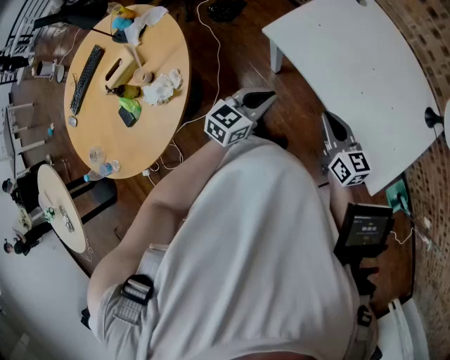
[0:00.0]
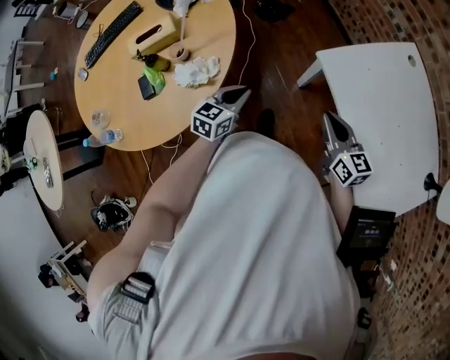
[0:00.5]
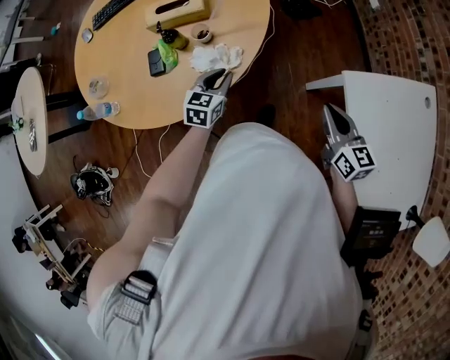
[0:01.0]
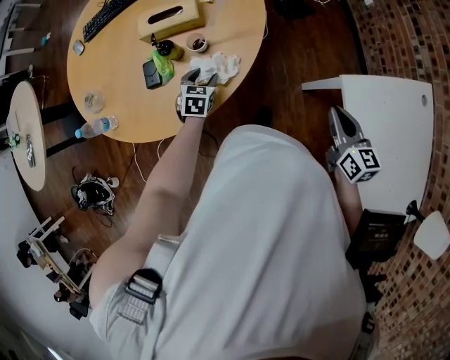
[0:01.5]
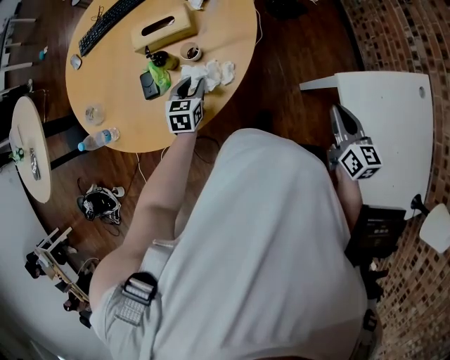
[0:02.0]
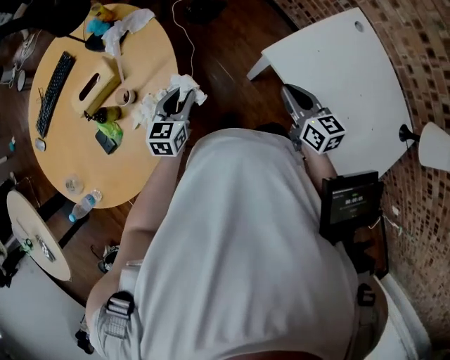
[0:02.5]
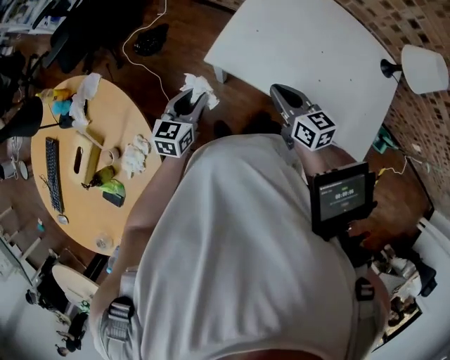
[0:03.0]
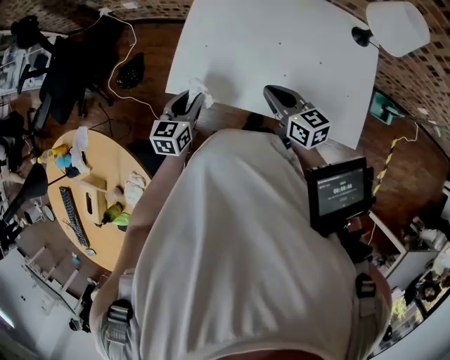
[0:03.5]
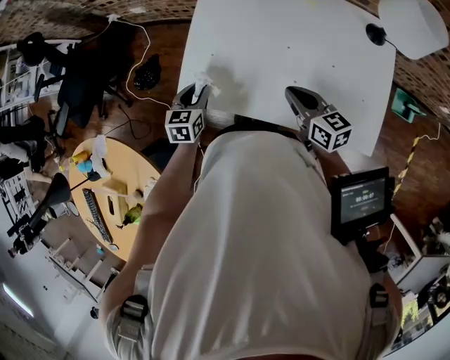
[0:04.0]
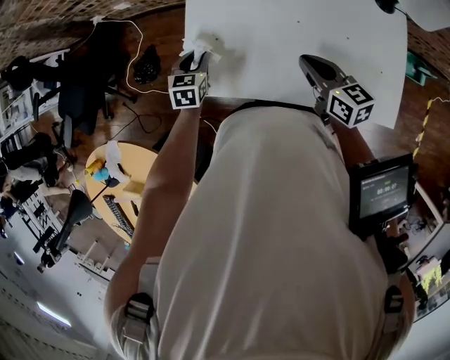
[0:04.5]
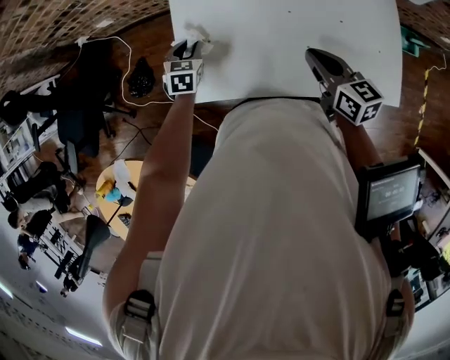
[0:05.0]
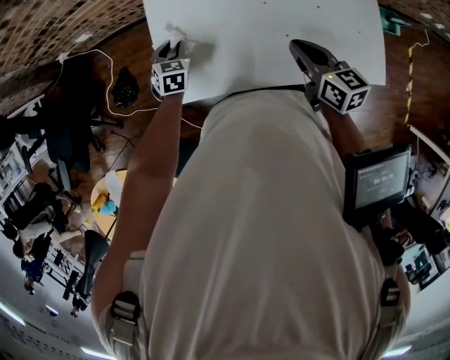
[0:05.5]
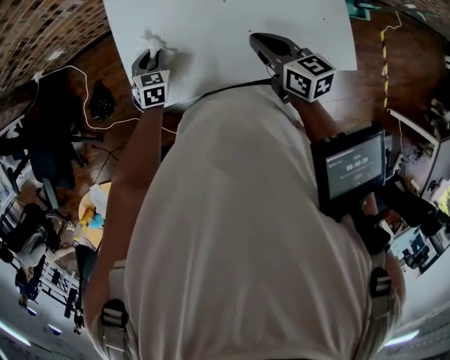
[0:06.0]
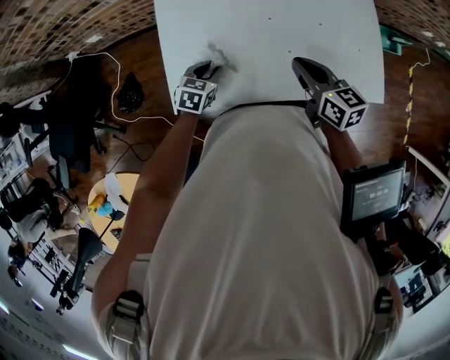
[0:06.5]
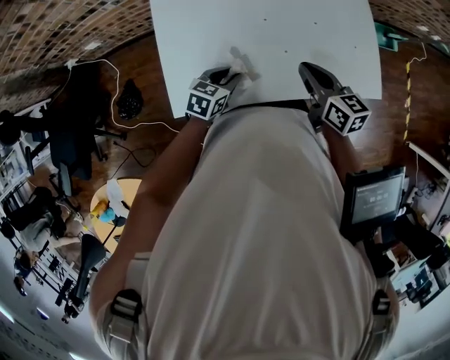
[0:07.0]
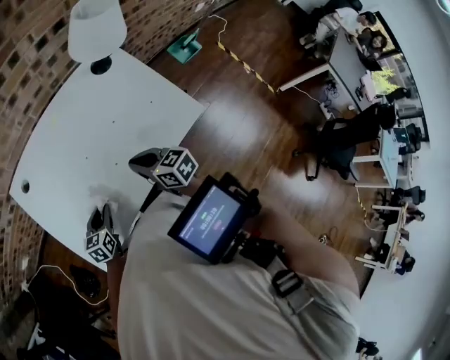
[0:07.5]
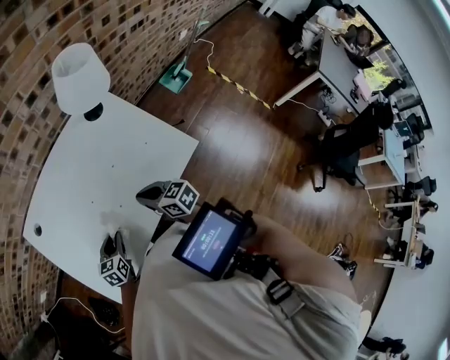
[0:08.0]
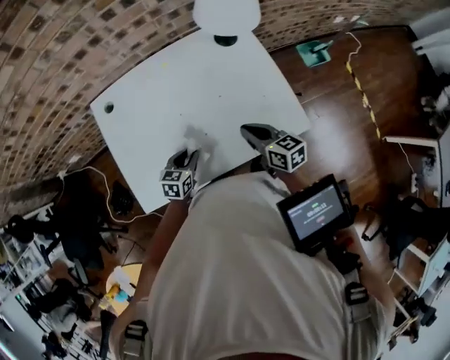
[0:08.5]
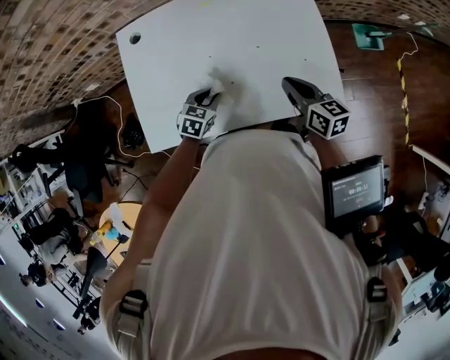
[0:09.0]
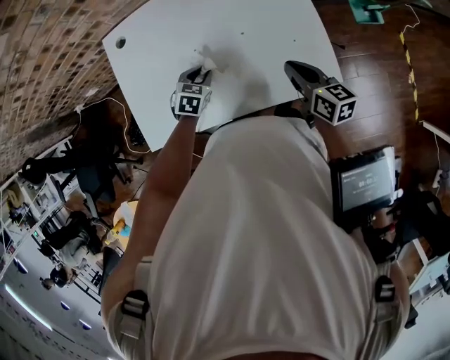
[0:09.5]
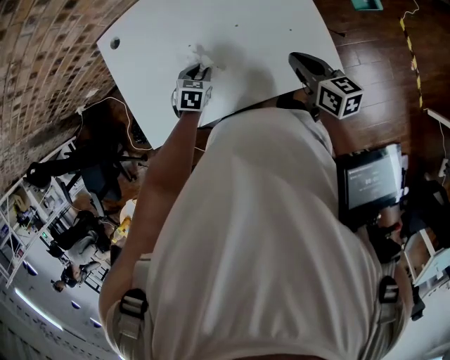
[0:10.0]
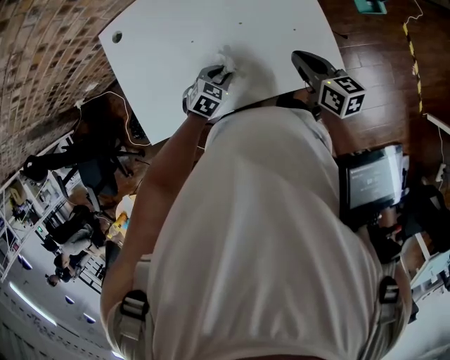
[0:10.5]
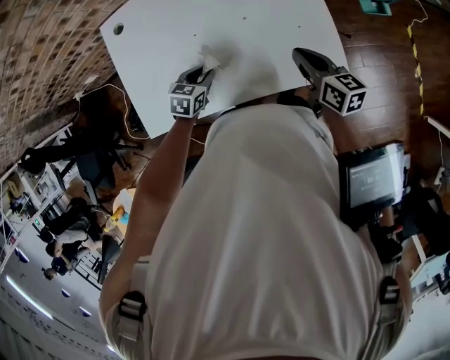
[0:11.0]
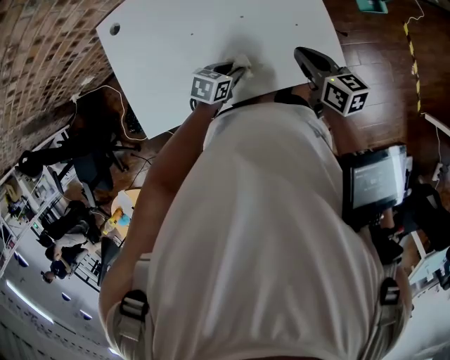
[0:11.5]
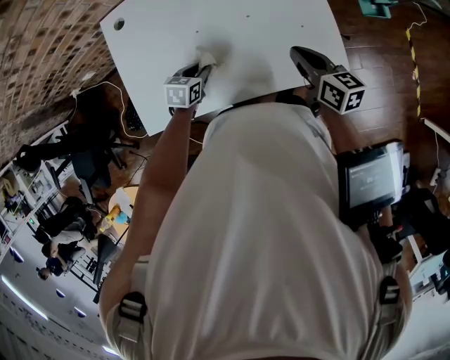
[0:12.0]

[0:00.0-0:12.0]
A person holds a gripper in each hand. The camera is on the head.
0:00.0 to 0:02.0: The left gripper moves roughly 50 cm, turns by roughly 60 degrees, and opens its fingers; the right gripper ends up roughly 25 cm from where it was.
0:02.0 to 0:04.0: The left gripper ends up some 60 cm from where it was, and turns by about 70 degrees. The right gripper moves some 35 cm, and rotates approximately 40 degrees.
0:04.0 to 0:06.0: The left gripper is displaced forward and downward by roughly 10 cm, and rotates about 30 degrees. The right gripper swivels about 20 degrees.
0:06.0 to 0:08.0: The left gripper shifts by approximately 15 cm, and changes its angle by roughly 40 degrees, while the right gripper shifts by some 10 cm.
0:08.0 to 0:10.0: The left gripper moves to the right and forward, about 10 cm, and rotates approximately 30 degrees, while the right gripper is displaced to the right by roughly 15 cm.
0:10.0 to 0:12.0: The left gripper moves left and right over roughly 10 cm, changing direction 3 times.

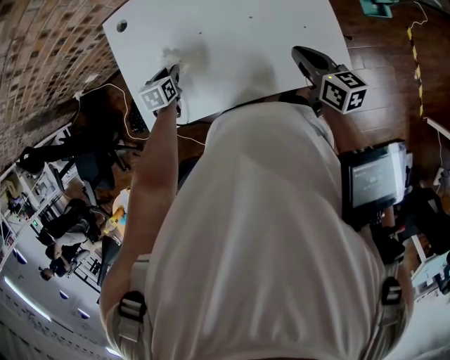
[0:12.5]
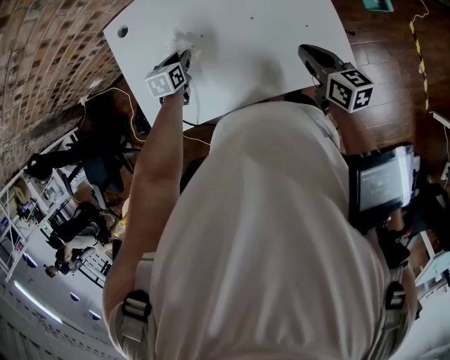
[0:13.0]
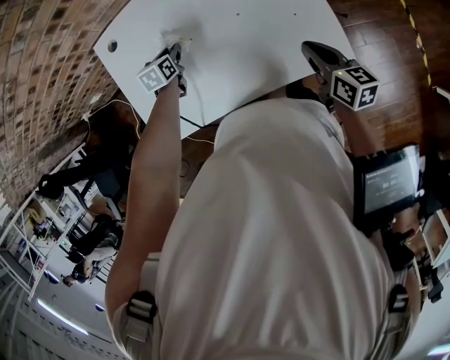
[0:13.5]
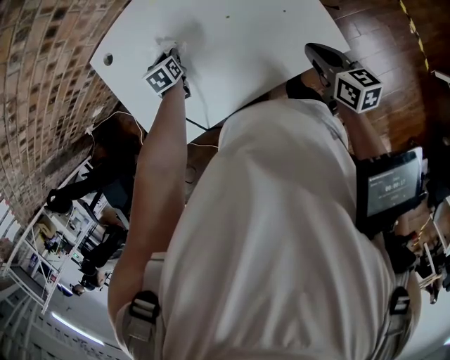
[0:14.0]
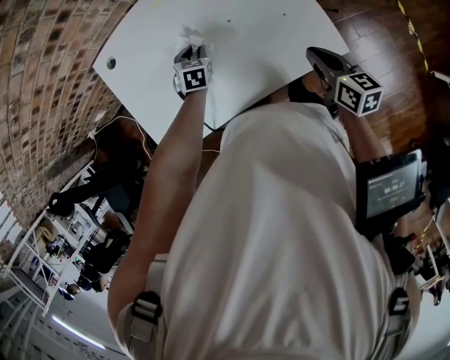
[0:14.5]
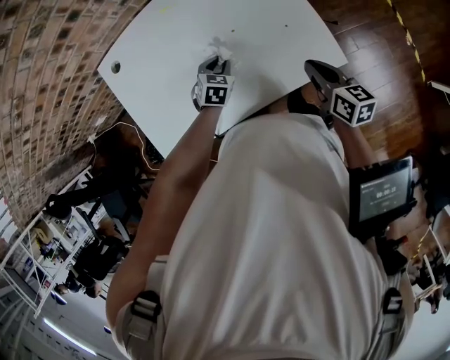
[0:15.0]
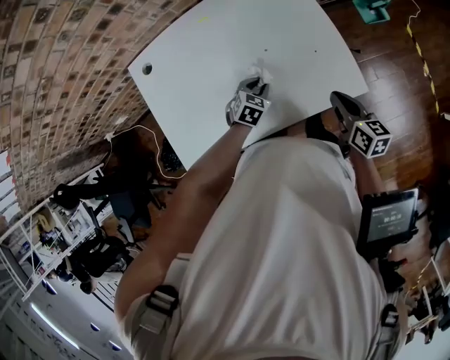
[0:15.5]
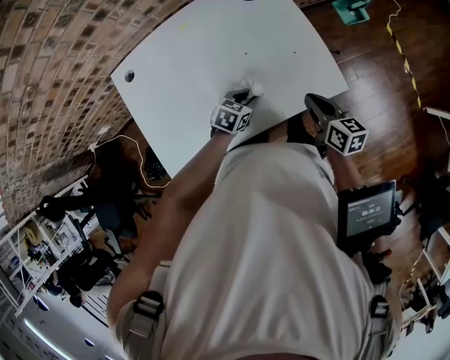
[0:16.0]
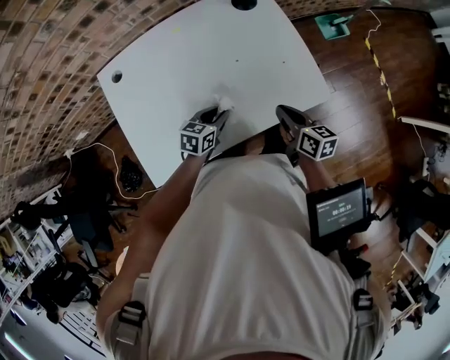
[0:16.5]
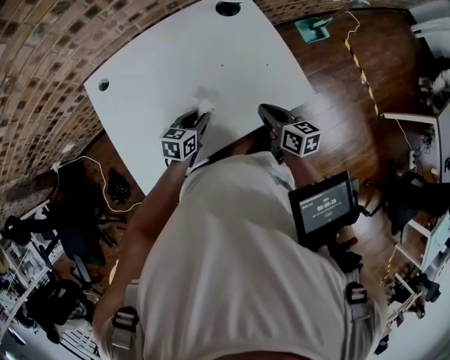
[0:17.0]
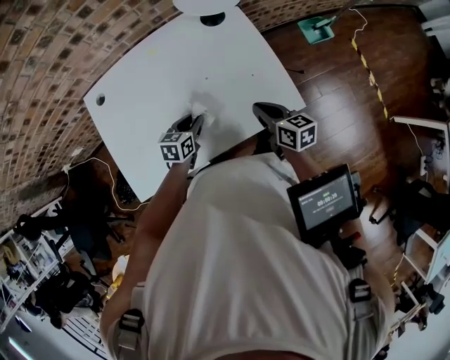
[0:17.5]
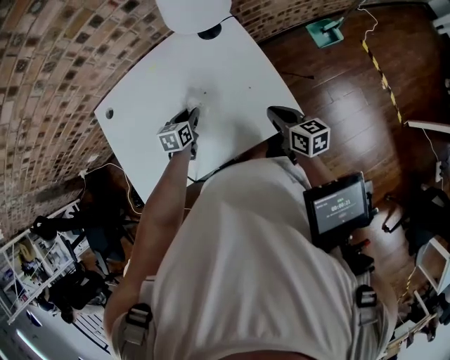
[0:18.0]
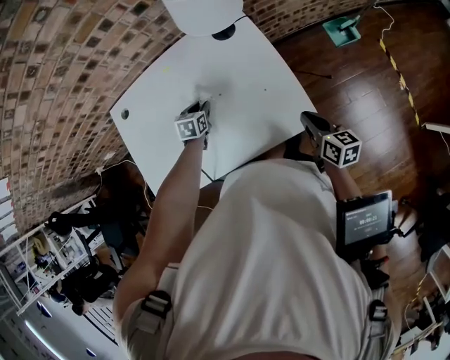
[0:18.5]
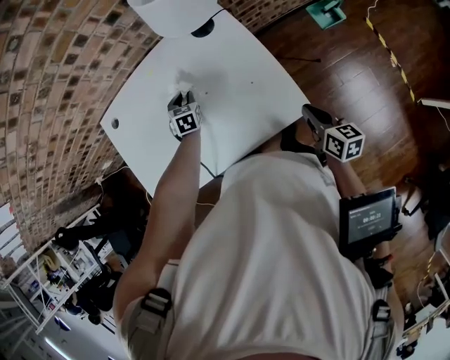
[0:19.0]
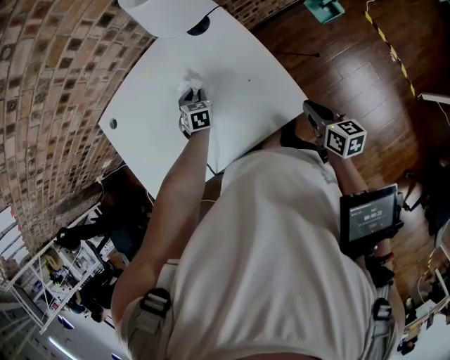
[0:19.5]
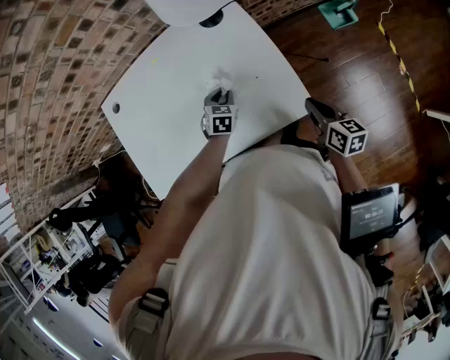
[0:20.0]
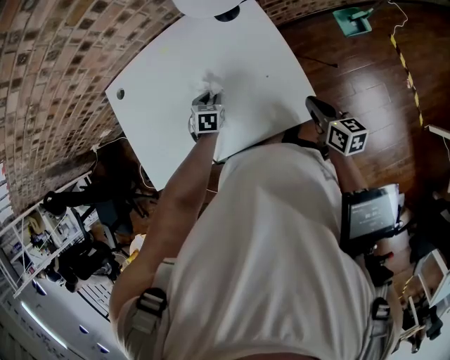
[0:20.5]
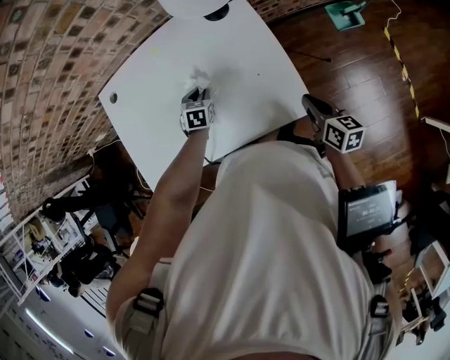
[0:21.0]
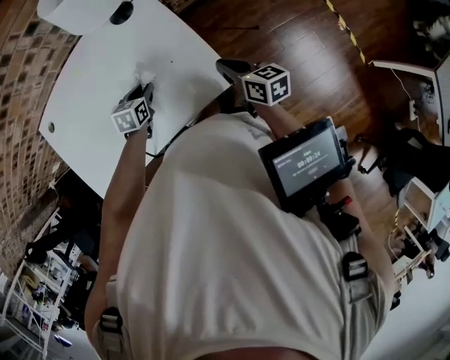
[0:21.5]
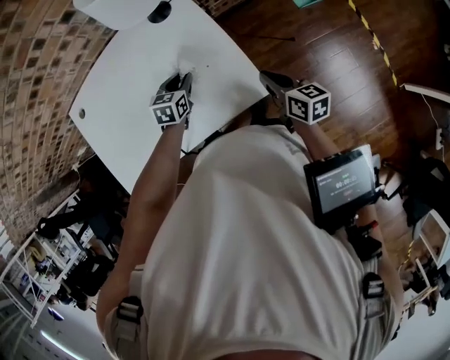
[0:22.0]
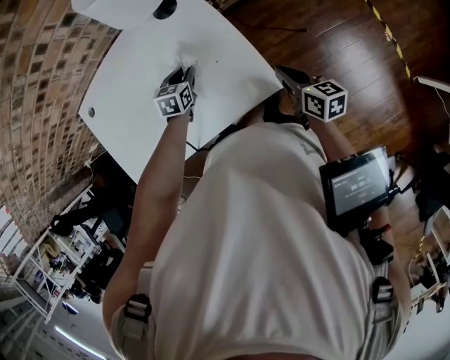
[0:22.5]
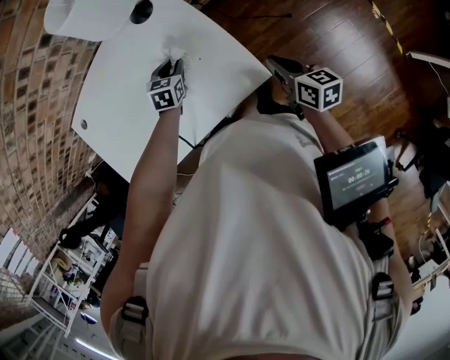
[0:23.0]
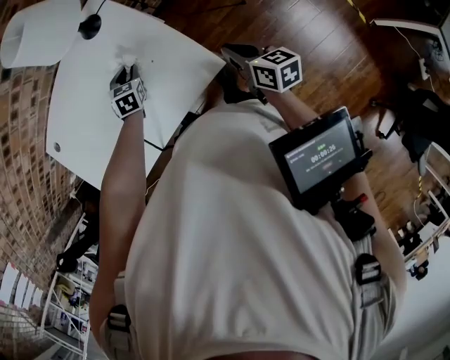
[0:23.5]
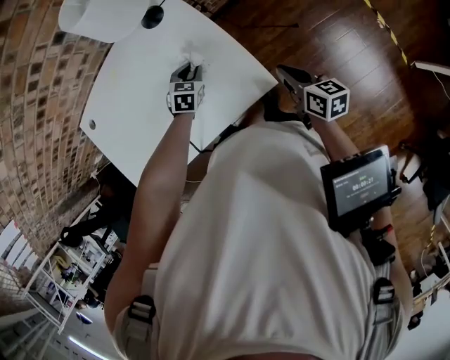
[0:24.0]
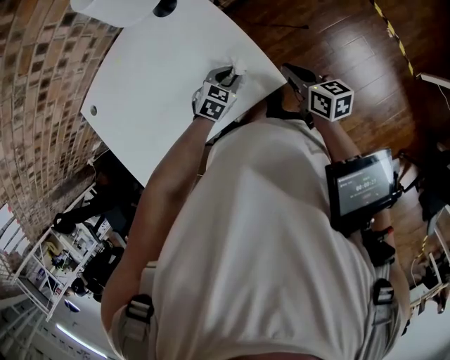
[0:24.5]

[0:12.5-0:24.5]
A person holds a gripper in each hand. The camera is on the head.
0:12.5 to 0:14.5: The left gripper is displaced to the right and forward by some 15 cm, and changes its angle by about 30 degrees. Meanwhile the right gripper shifts by approximately 5 cm.
0:14.5 to 0:16.5: The right gripper shifts by roughly 10 cm, while the left gripper shifts by roughly 15 cm, and swivels some 40 degrees.
0:16.5 to 0:18.5: The right gripper is displaced to the right by some 15 cm. Meanwhile the left gripper is displaced forward by approximately 15 cm, and swivels roughly 30 degrees.
0:18.5 to 0:20.5: The left gripper moves backward, about 5 cm, and moves some 10 cm to the right and comes back.
0:20.5 to 0:22.5: The left gripper is displaced to the right by some 10 cm; the right gripper heads to the right, covering about 5 cm.
0:22.5 to 0:24.5: The left gripper moves to the right and backward, approximately 15 cm, and turns by roughly 30 degrees.

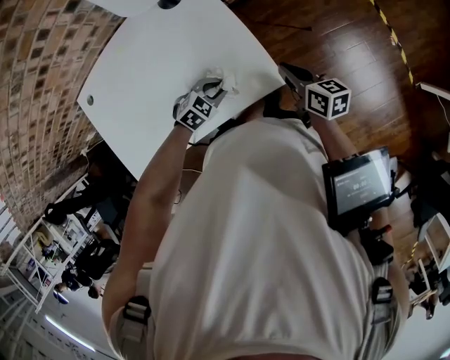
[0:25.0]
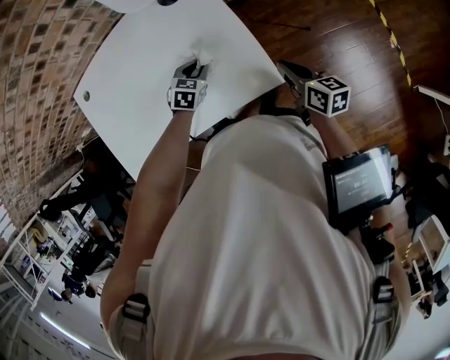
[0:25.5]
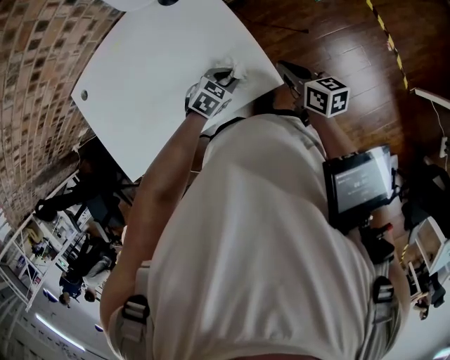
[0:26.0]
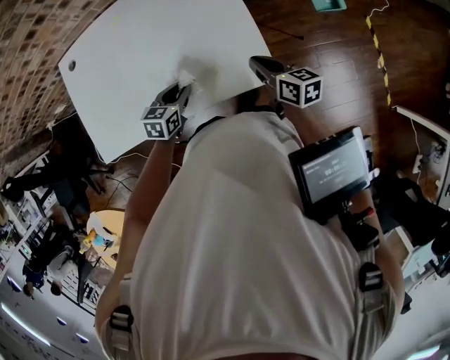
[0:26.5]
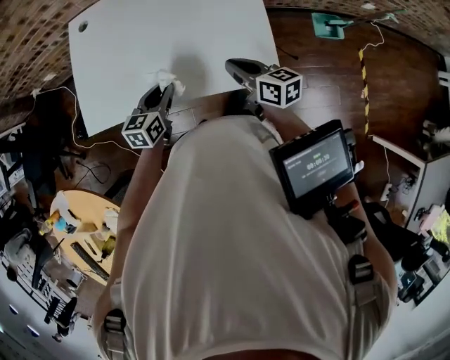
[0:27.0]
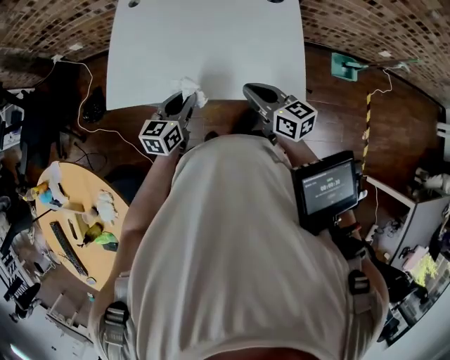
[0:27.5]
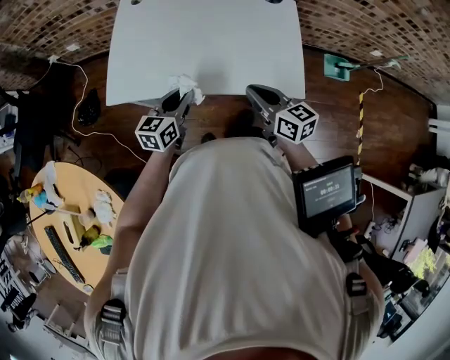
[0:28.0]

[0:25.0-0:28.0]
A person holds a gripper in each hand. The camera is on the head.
0:25.0 to 0:26.5: The right gripper shifts roughly 10 cm to the left; the left gripper swings left and right, roughly 15 cm each way, with 2 reversals, and rolls counterclockwise, seen from behind, by roughly 50 degrees.
0:26.5 to 0:28.0: The right gripper is displaced to the left and backward by some 25 cm, and changes its angle by about 30 degrees, while the left gripper heads to the left, backward and upward, covering roughly 20 cm, and rotates approximately 30 degrees.
